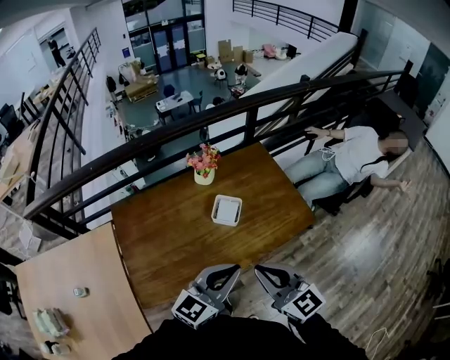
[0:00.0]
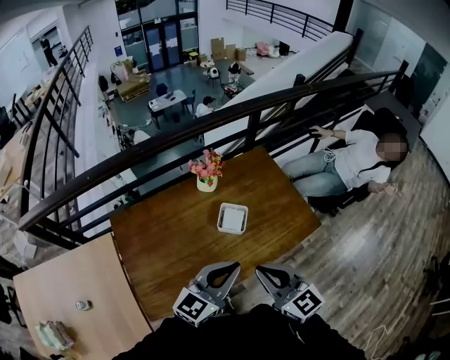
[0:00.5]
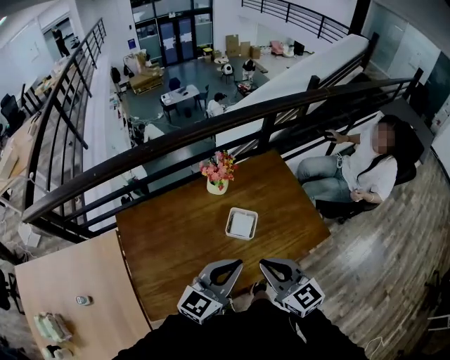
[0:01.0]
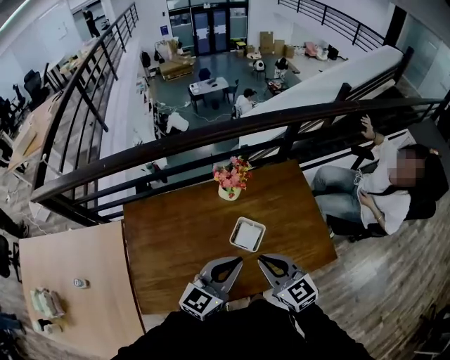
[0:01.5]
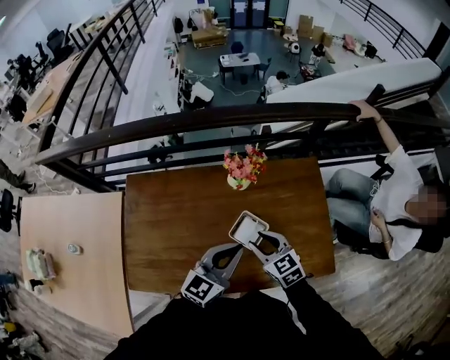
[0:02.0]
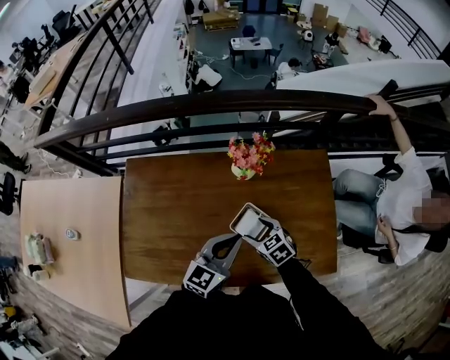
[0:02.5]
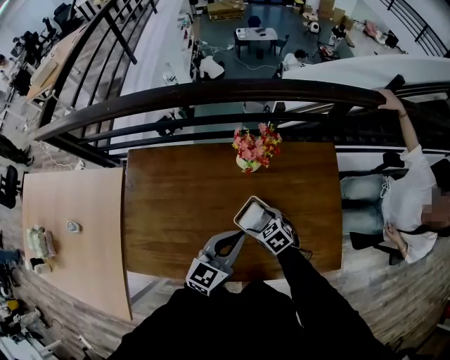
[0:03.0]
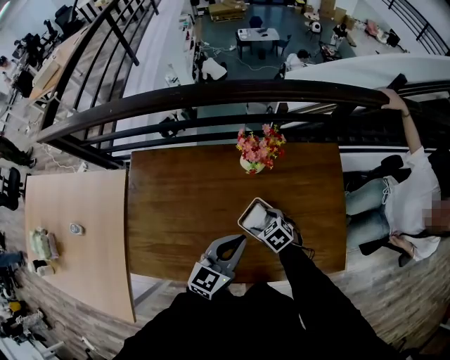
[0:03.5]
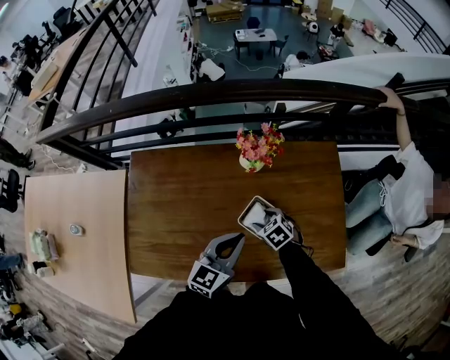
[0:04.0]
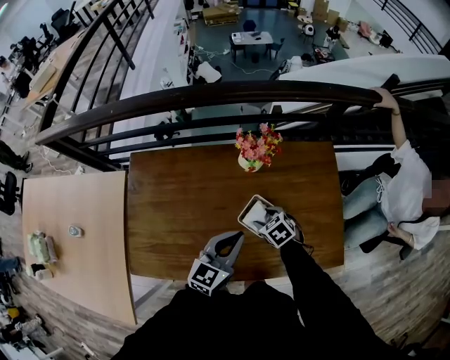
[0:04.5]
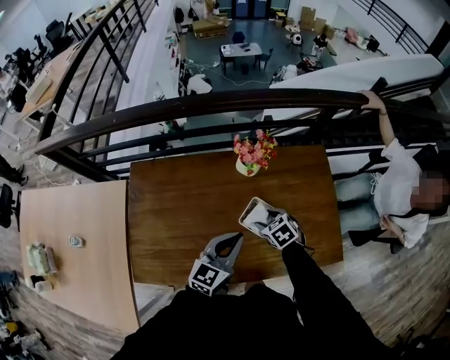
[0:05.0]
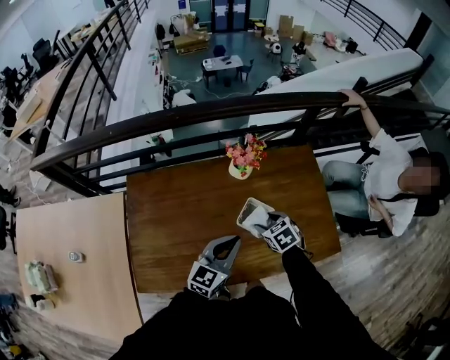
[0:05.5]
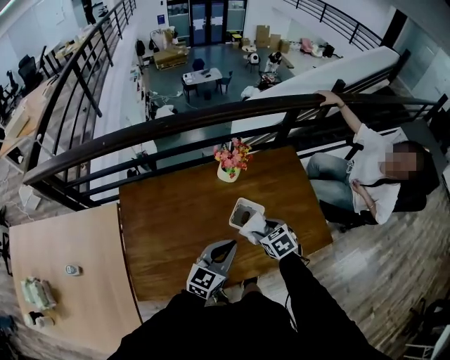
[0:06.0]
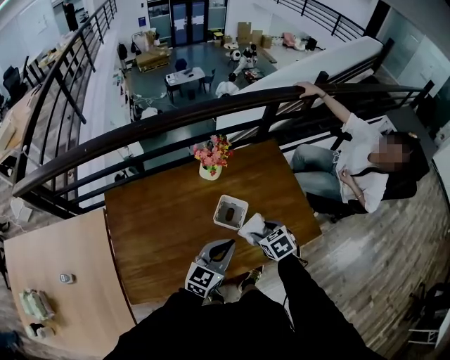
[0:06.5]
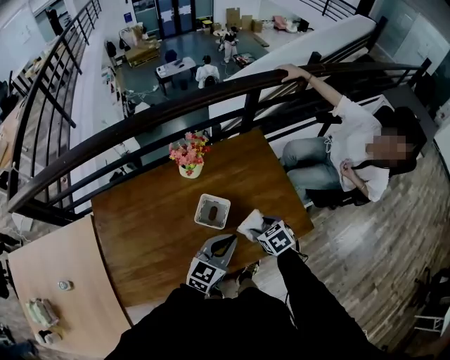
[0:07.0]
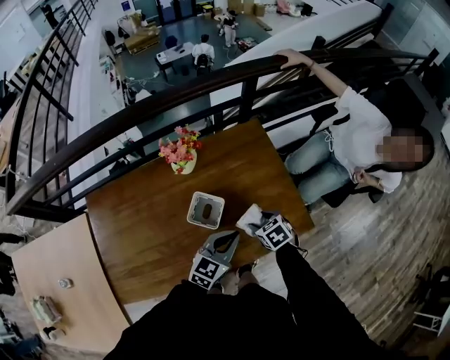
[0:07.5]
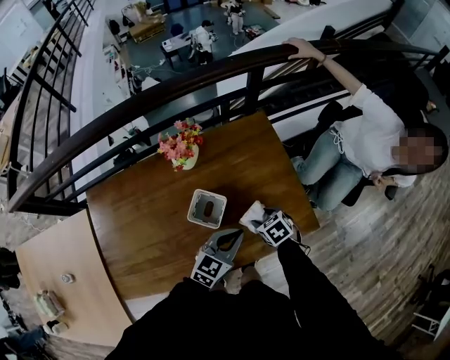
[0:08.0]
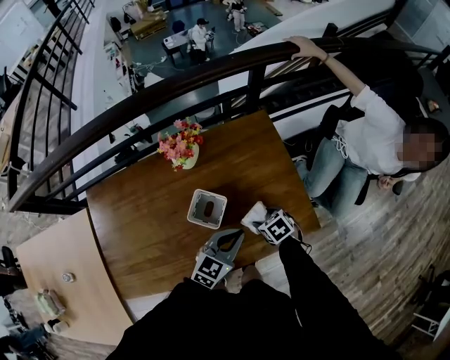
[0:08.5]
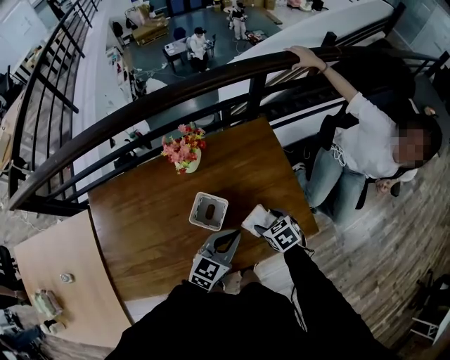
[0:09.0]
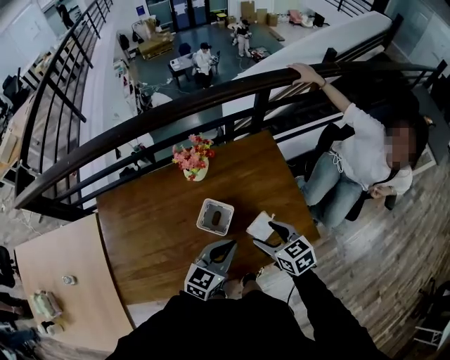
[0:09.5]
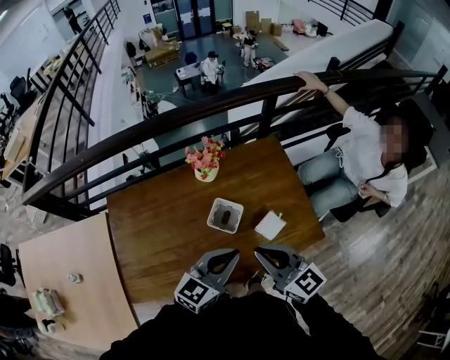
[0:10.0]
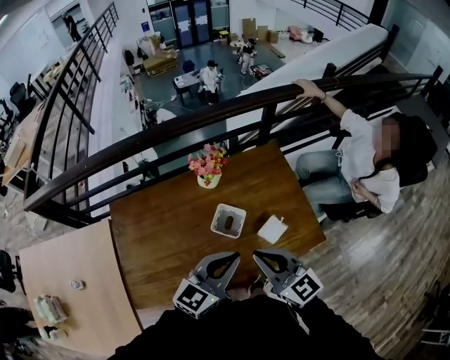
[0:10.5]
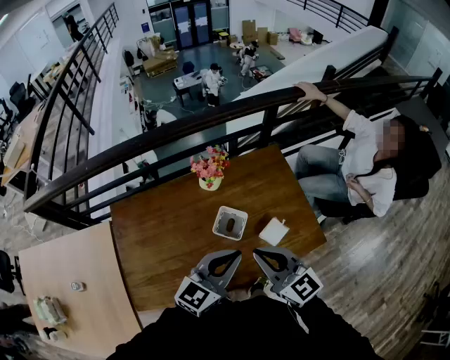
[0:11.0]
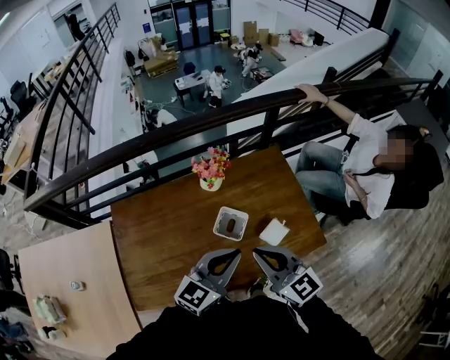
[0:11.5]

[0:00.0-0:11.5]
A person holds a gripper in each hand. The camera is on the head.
0:00.0 to 0:02.0: The left gripper is displaced forward by some 25 cm, and swivels roughly 20 degrees, while the right gripper shifts roughly 35 cm forward and downward, and changes its angle by roughly 30 degrees.
0:02.0 to 0:04.0: The right gripper is displaced downward by about 15 cm, changes its angle by some 30 degrees, and opens, then closes again; the left gripper moves downward, about 10 cm.
0:04.0 to 0:06.0: The right gripper moves upward and backward, approximately 15 cm, and rotates some 20 degrees, while the left gripper shifts roughly 10 cm backward.
0:06.0 to 0:07.5: The left gripper goes about 15 cm to the right; the right gripper heads to the right and downward, covering some 15 cm.
0:07.5 to 0:09.5: The right gripper goes approximately 10 cm upward, and changes its angle by some 20 degrees.
0:09.5 to 0:11.5: The right gripper moves upward and to the left, approximately 20 cm, rotates roughly 30 degrees, and closes. Meanwhile the left gripper heads upward, covering some 15 cm.

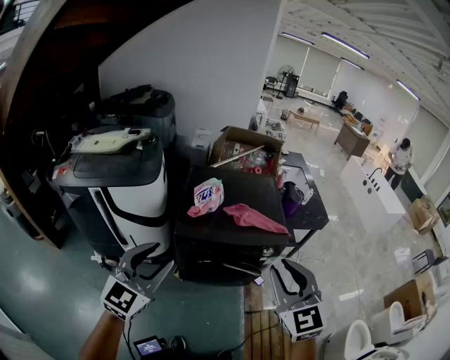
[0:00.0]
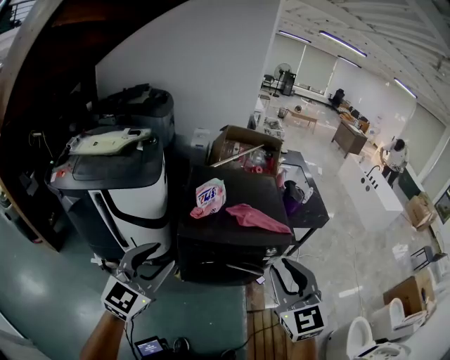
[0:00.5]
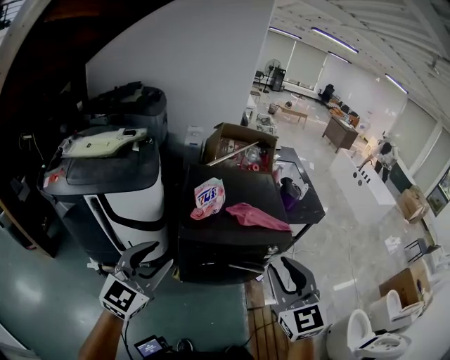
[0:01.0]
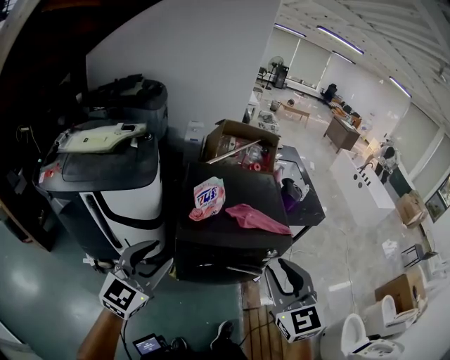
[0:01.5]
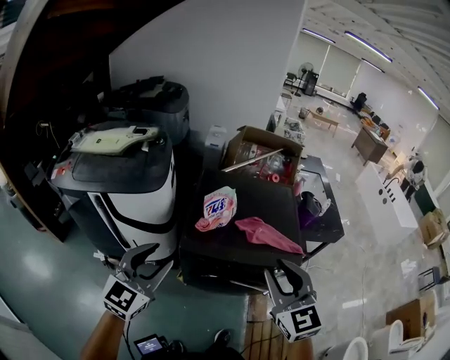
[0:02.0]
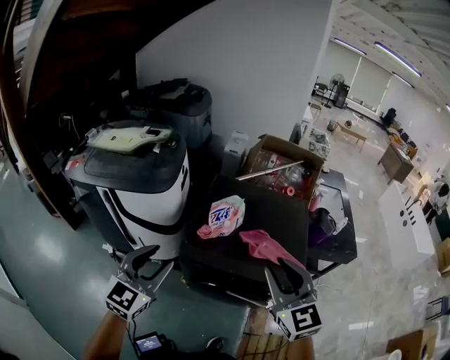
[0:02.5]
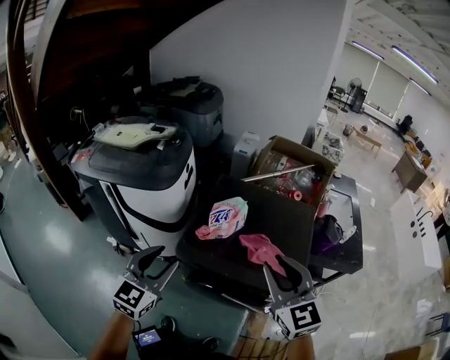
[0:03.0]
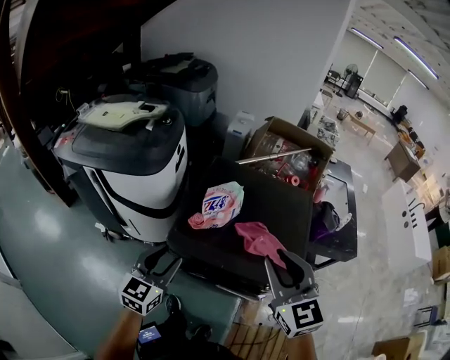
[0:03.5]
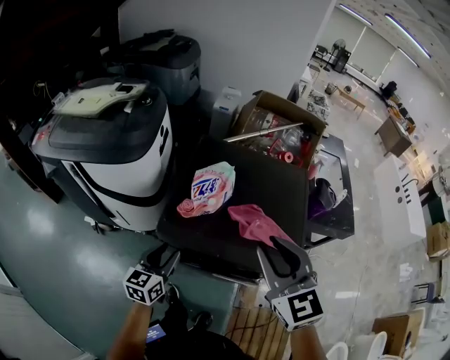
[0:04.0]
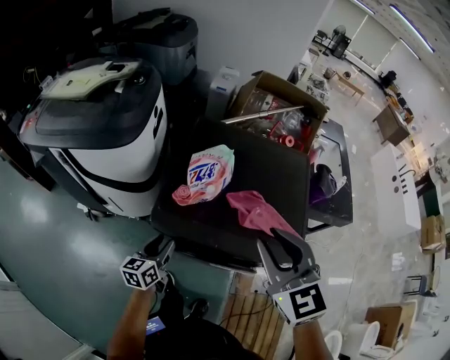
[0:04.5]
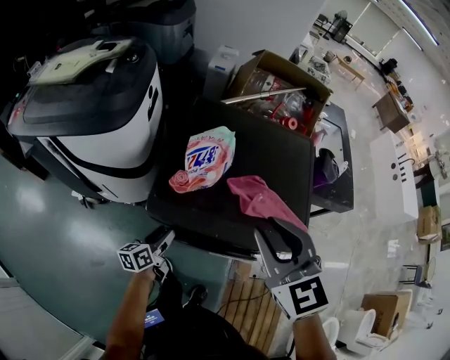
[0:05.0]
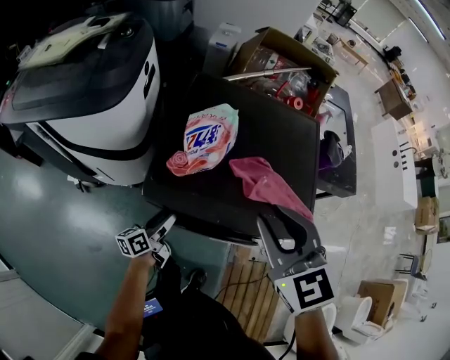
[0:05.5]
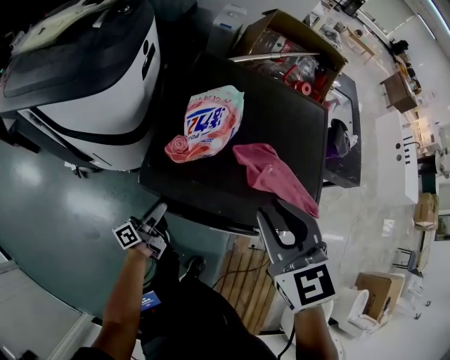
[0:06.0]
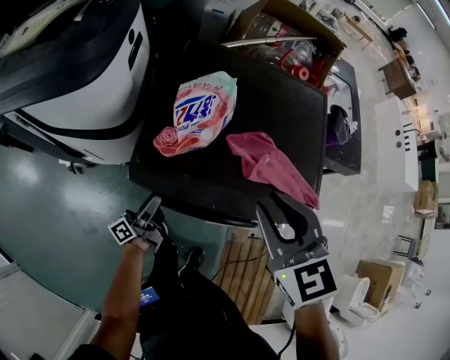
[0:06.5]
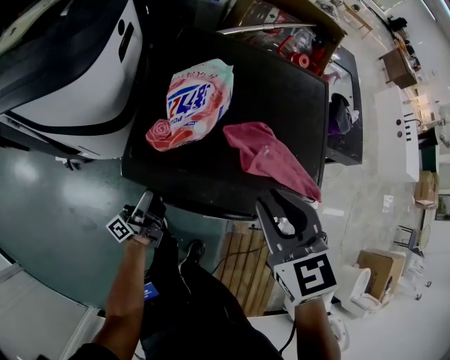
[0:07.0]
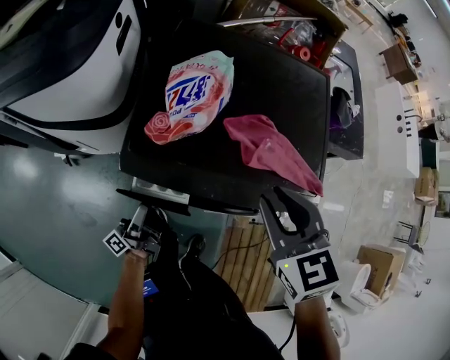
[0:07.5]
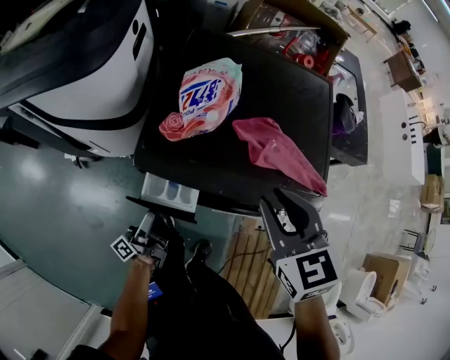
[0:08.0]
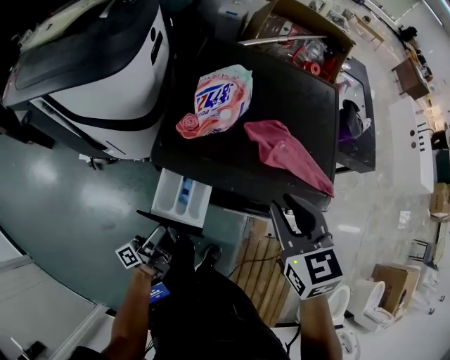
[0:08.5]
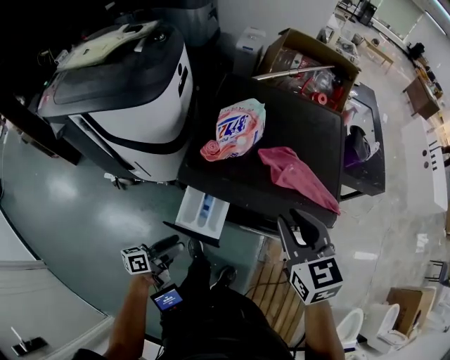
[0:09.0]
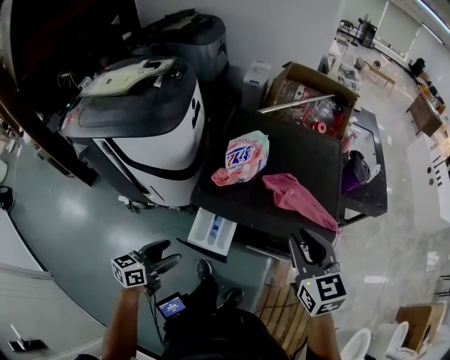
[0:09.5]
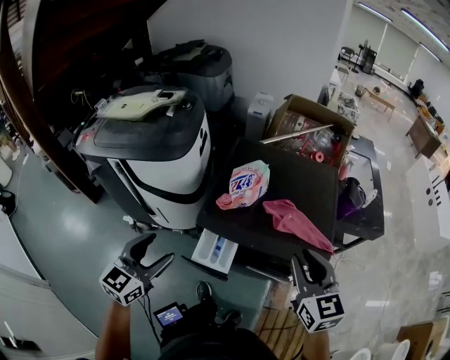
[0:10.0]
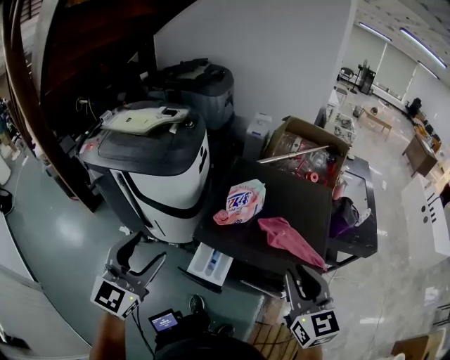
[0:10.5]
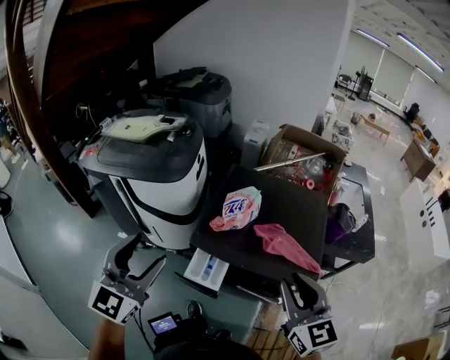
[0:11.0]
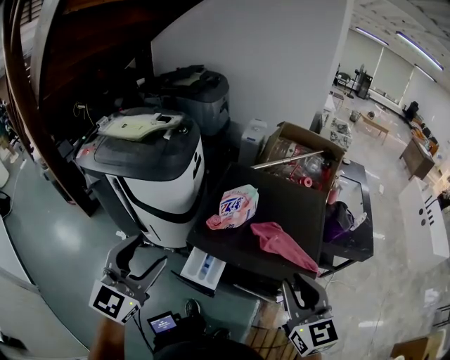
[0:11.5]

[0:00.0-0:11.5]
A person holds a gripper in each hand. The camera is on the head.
0:00.0 to 0:02.0: The left gripper is displaced forward by some 10 cm, while the right gripper is displaced forward and to the left by roughly 15 cm.
0:02.0 to 0:04.0: The left gripper shifts roughly 25 cm downward, and rotates approximately 40 degrees. The right gripper travels forward by approximately 15 cm.
0:04.0 to 0:06.0: The left gripper travels downward by approximately 20 cm, and twists roughly 50 degrees counterclockwise, seen from behind; the right gripper shifts roughly 10 cm downward.
0:06.0 to 0:07.5: The right gripper moves downward, some 5 cm.
0:07.5 to 0:09.5: The right gripper goes some 10 cm backward and upward, while the left gripper is displaced upward, backward and to the left by about 20 cm, and tips its fingers downward by roughly 40 degrees.
0:09.5 to 0:11.5: The right gripper shifts some 10 cm upward and backward, while the left gripper goes roughly 30 cm upward, and rotates around the line of its fingers by approximately 50 degrees, clockwise from behind.

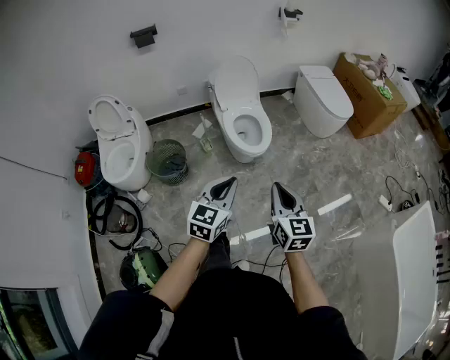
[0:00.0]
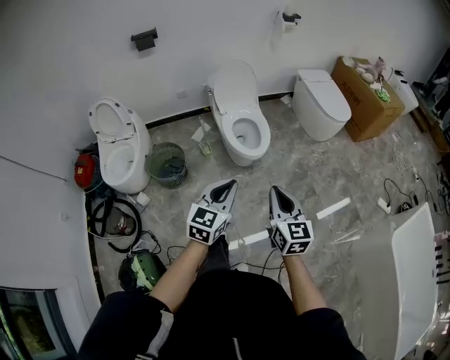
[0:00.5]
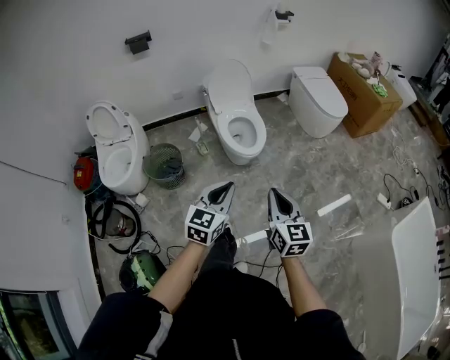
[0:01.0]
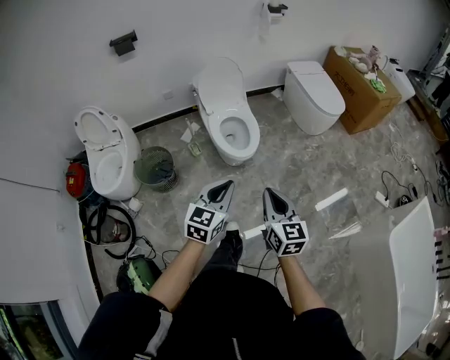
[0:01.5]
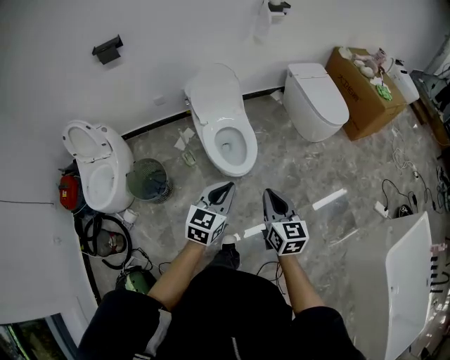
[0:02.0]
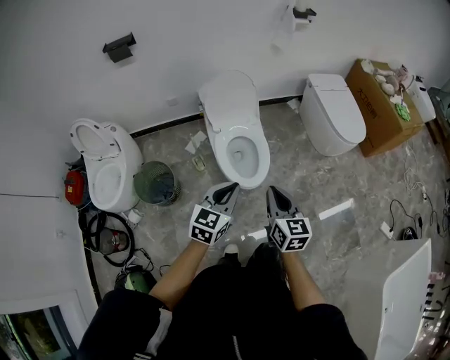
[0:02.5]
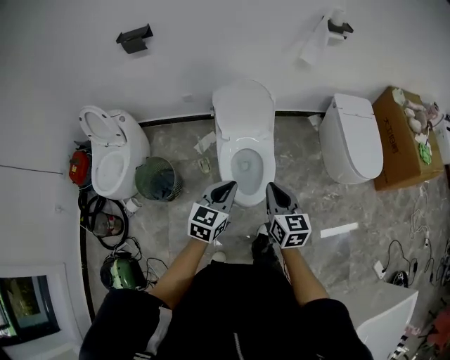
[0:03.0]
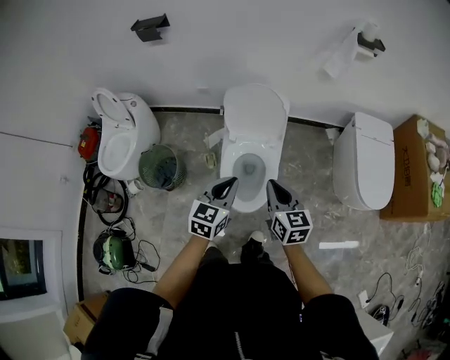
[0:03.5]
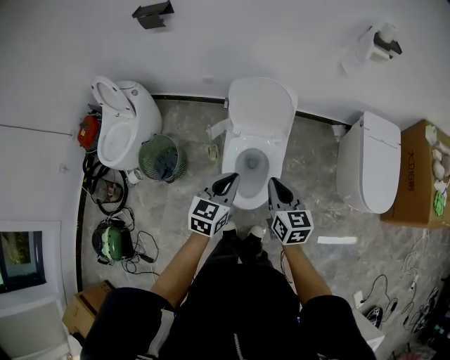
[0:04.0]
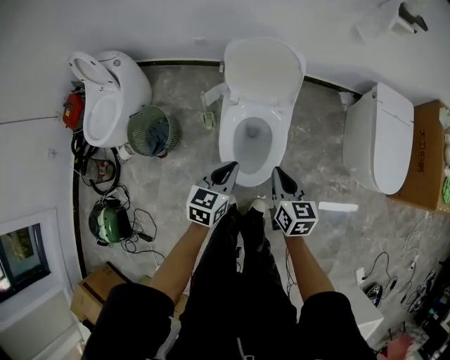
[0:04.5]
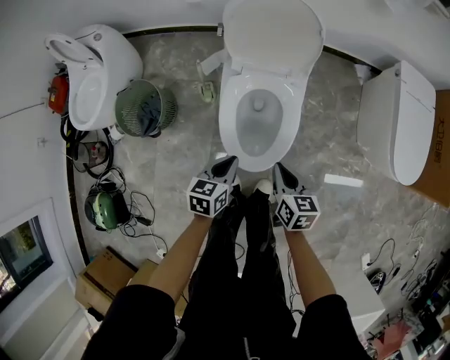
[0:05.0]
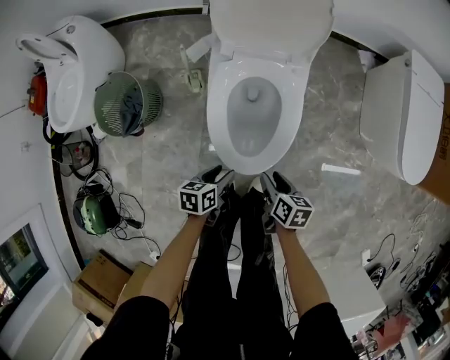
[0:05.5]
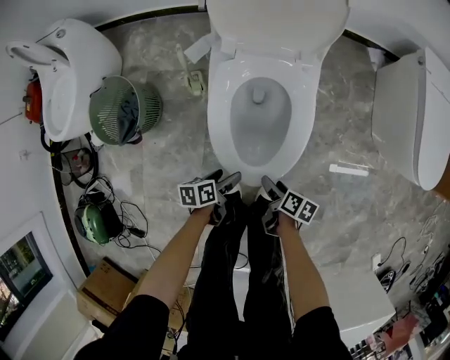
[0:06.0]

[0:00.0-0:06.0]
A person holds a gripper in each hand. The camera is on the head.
0:00.0 to 0:02.0: Both grippers travel together forward, some 20 cm.
0:02.0 to 0:04.0: The left gripper ends up approximately 35 cm from where it was, and changes its angle by about 30 degrees; the right gripper ends up some 40 cm from where it was, and rotates about 30 degrees.
0:04.0 to 0:06.0: Both grippers move downward, approximately 60 cm. The left gripper twists some 50 degrees counterclockwise, seen from behind, and opens up; the right gripper twists about 50 degrees clockwise, seen from behind, and opens up.
